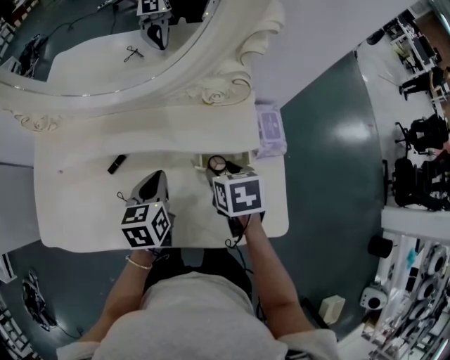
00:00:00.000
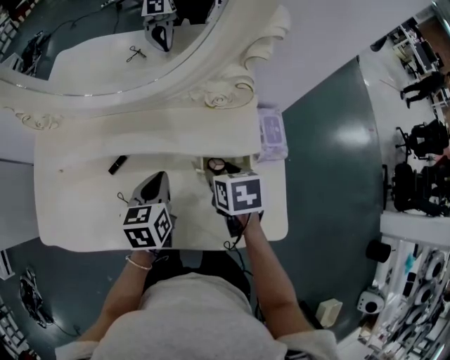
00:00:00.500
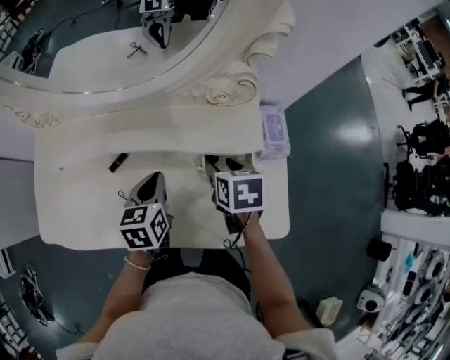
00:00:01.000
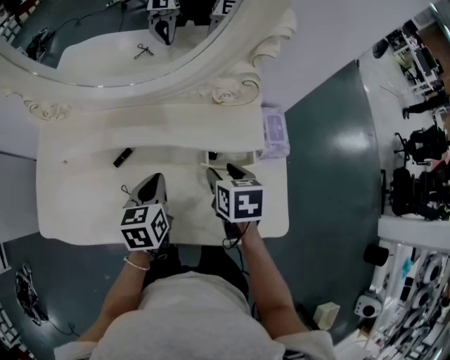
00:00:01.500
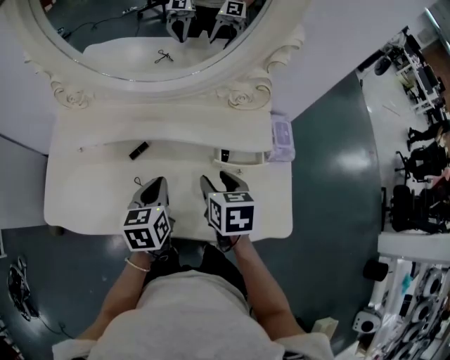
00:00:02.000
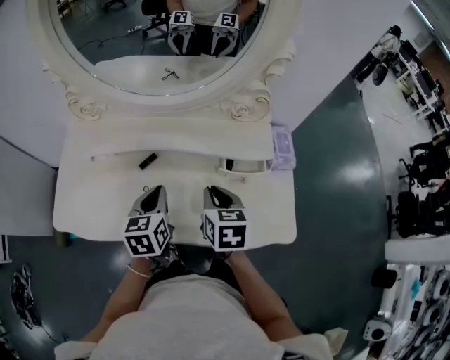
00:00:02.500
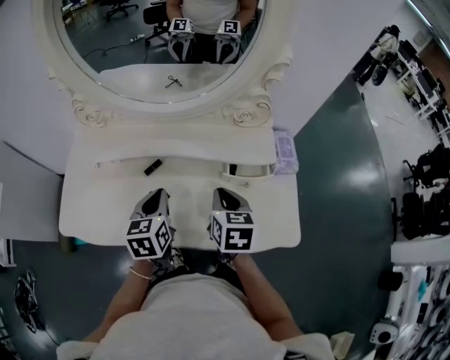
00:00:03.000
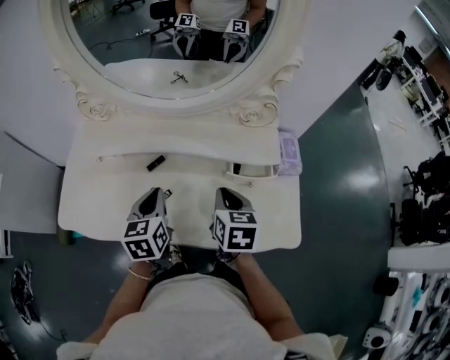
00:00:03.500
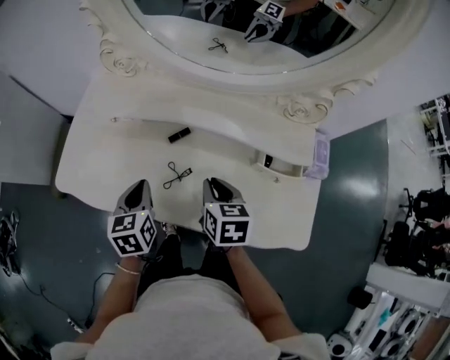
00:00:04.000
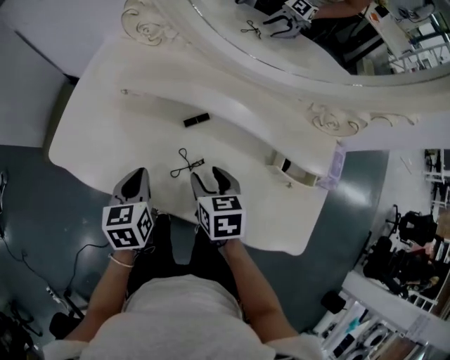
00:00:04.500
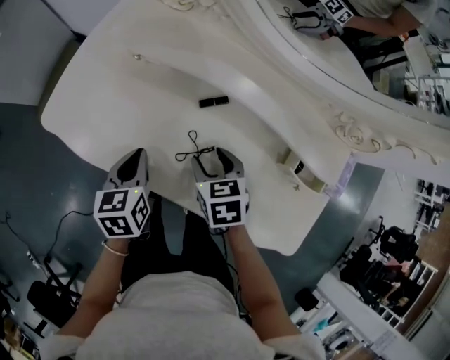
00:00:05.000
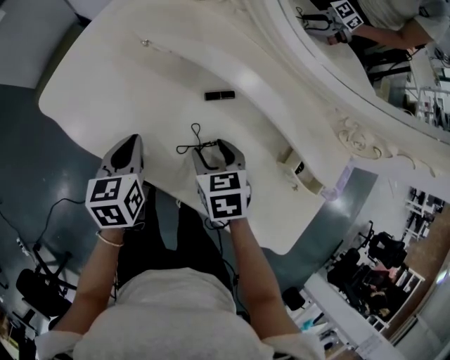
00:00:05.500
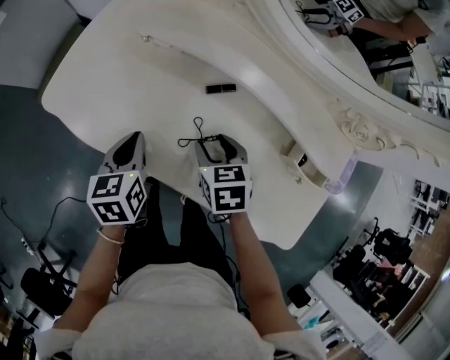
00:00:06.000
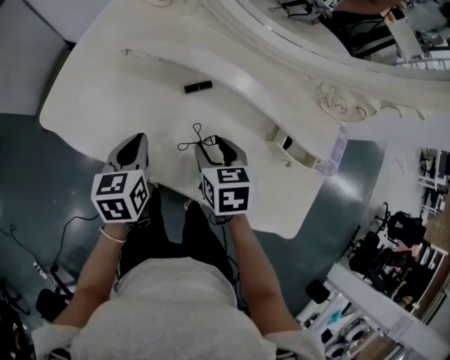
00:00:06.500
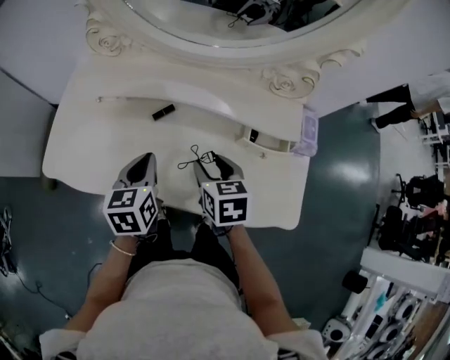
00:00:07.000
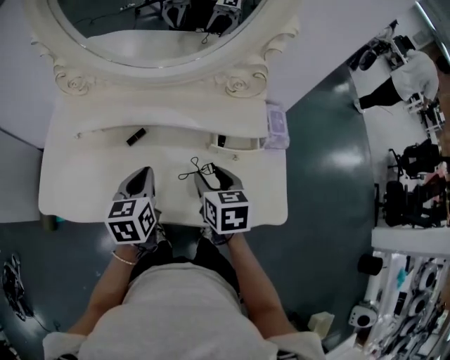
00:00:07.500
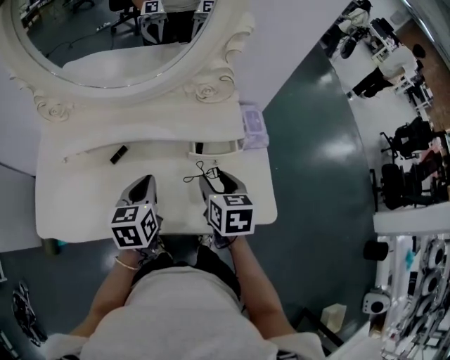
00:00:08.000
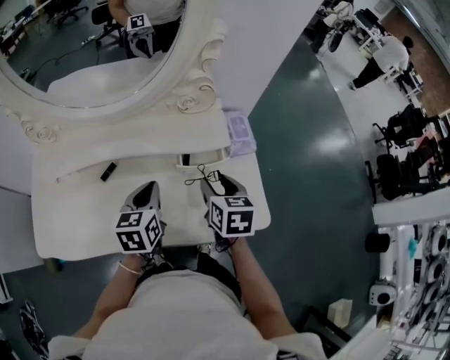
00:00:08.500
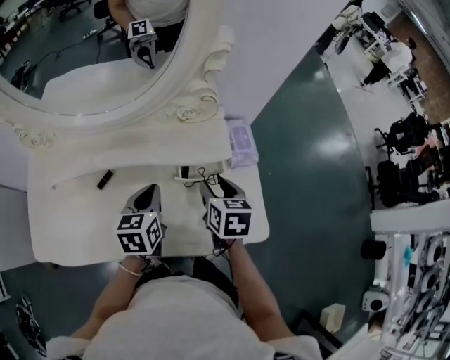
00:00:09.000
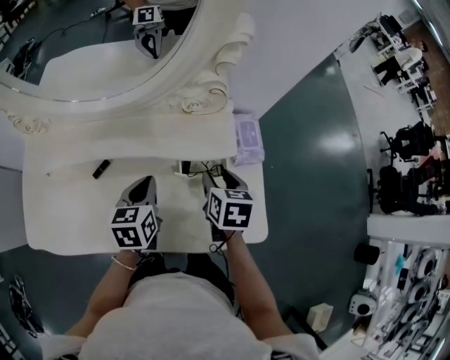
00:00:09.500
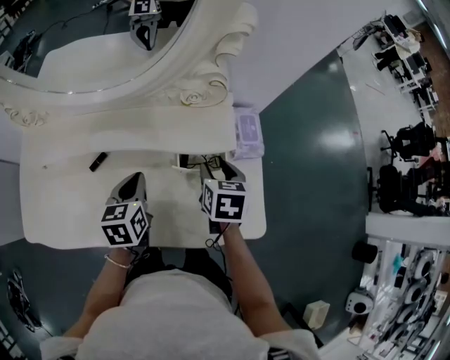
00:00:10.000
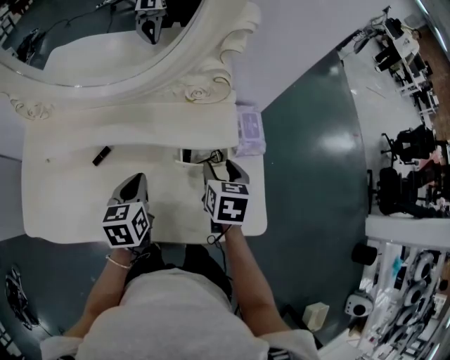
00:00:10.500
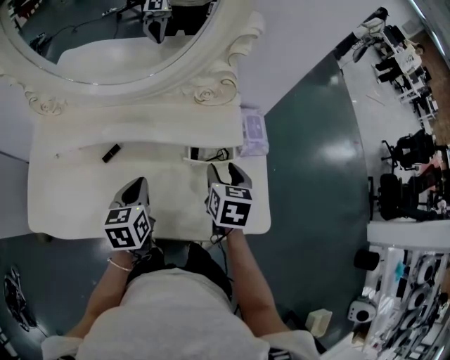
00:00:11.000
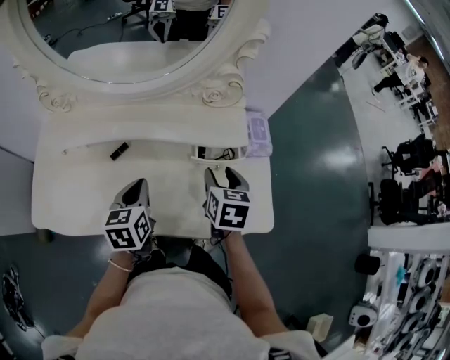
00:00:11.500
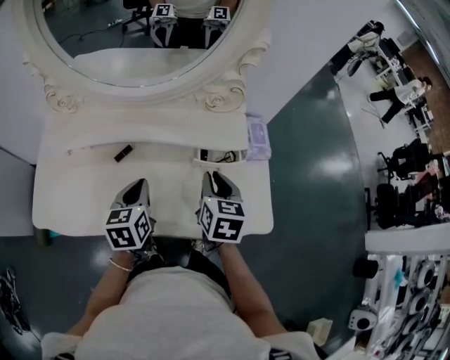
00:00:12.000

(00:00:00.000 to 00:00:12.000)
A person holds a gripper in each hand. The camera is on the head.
00:00:00.000 - 00:00:02.000: The left gripper heads to the left and backward, covering approximately 10 cm. The right gripper goes approximately 10 cm to the left.
00:00:02.000 - 00:00:04.000: The two grippers go roughly 15 cm to the left. The right gripper closes up.
00:00:04.000 - 00:00:06.000: The left gripper moves to the left and downward, approximately 10 cm, while the right gripper is displaced downward and to the left by roughly 10 cm, changes its angle by roughly 30 degrees, and opens up.
00:00:06.000 - 00:00:08.000: The left gripper ends up approximately 25 cm from where it was, and swivels approximately 40 degrees, while the right gripper changes place by about 30 cm, and swivels about 50 degrees.
00:00:08.000 - 00:00:10.000: The right gripper is displaced forward and to the right by approximately 10 cm. Meanwhile the left gripper moves forward, about 5 cm.
00:00:10.000 - 00:00:12.000: The left gripper shifts roughly 10 cm backward and to the left. The right gripper travels backward, to the left and upward by roughly 10 cm, and closes up.

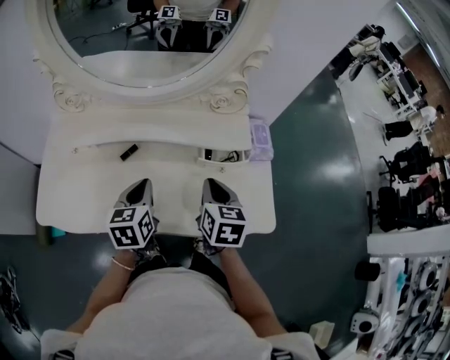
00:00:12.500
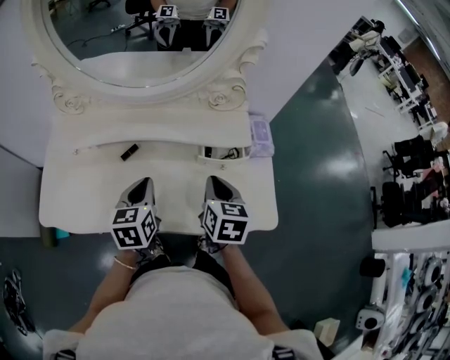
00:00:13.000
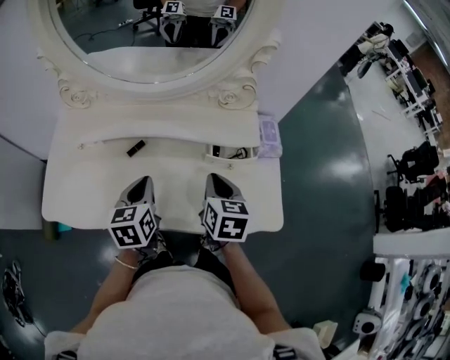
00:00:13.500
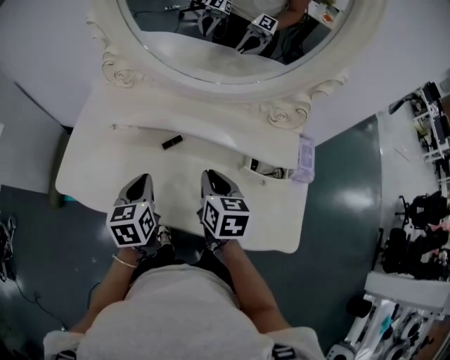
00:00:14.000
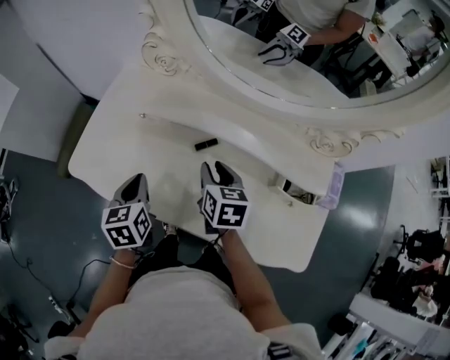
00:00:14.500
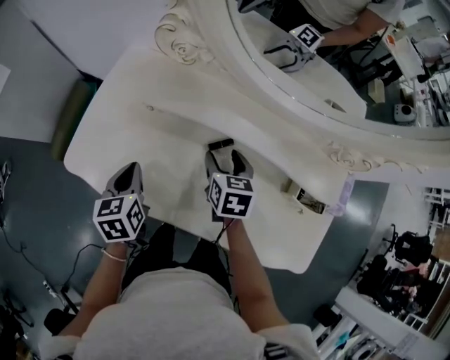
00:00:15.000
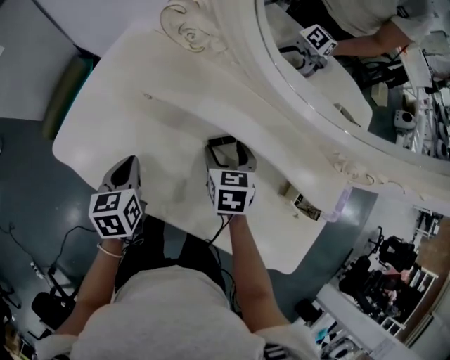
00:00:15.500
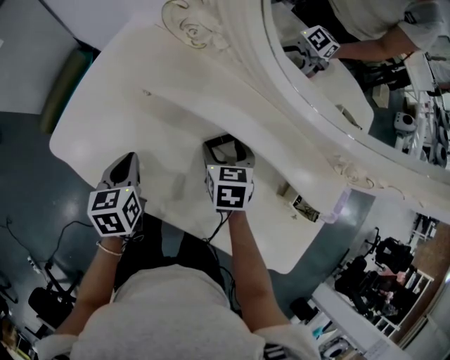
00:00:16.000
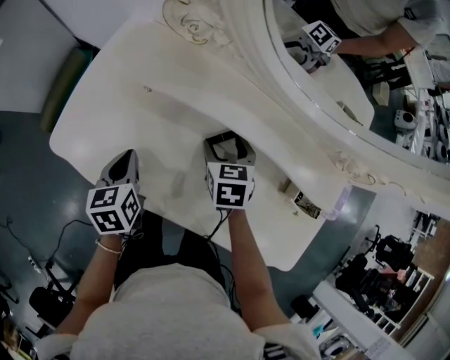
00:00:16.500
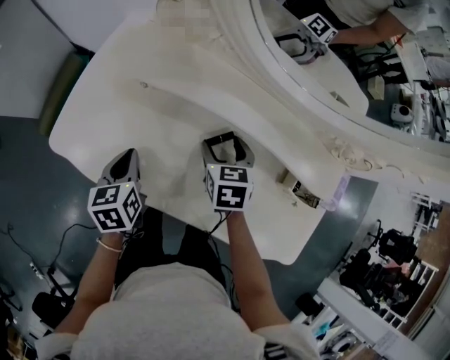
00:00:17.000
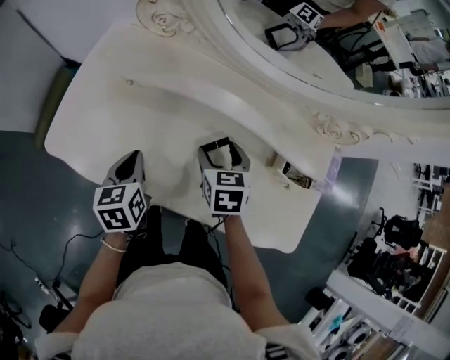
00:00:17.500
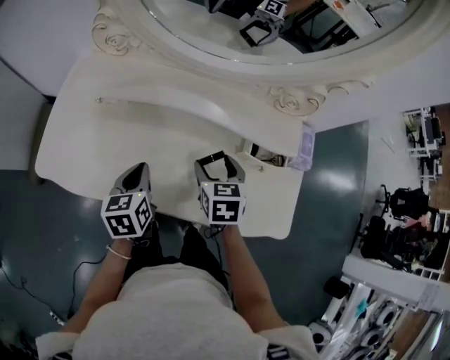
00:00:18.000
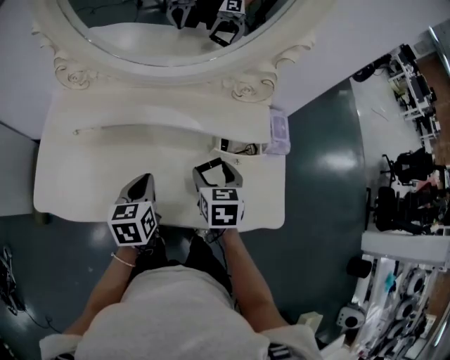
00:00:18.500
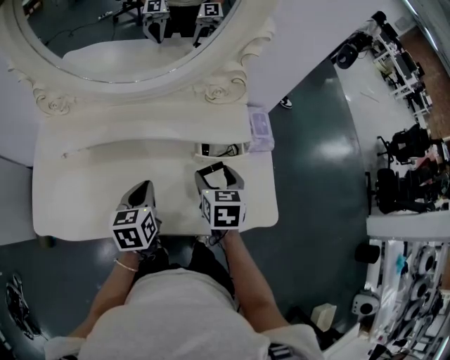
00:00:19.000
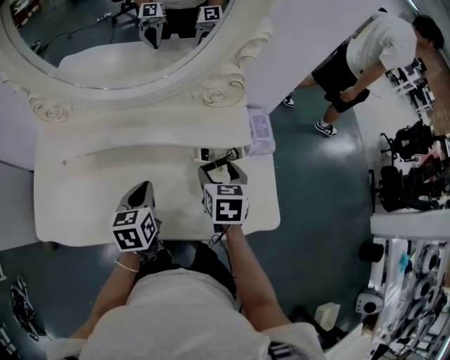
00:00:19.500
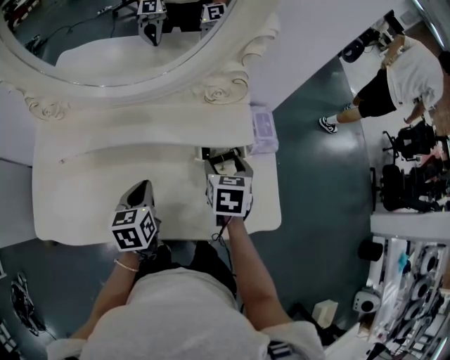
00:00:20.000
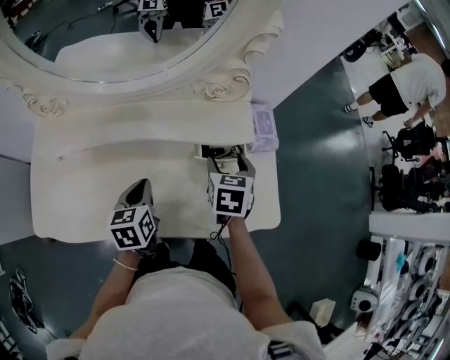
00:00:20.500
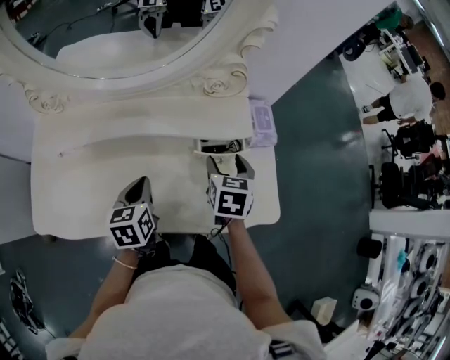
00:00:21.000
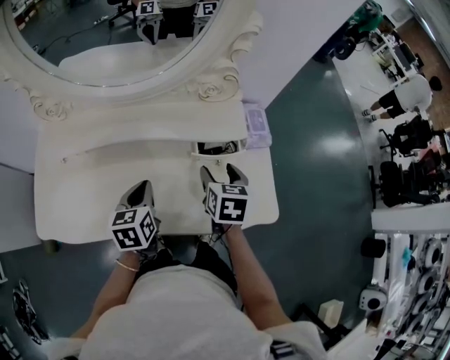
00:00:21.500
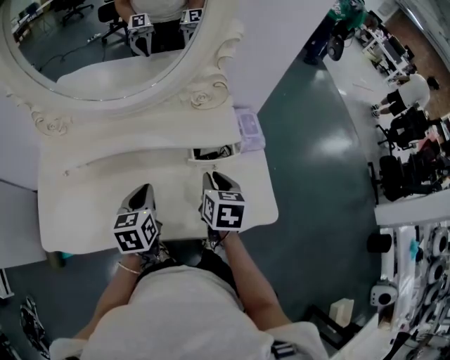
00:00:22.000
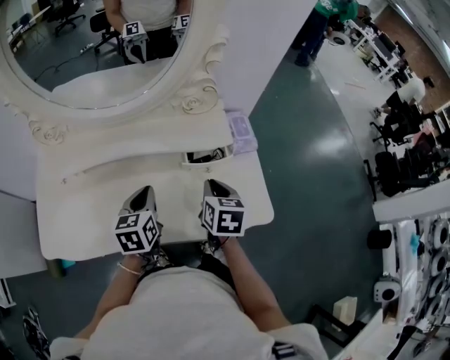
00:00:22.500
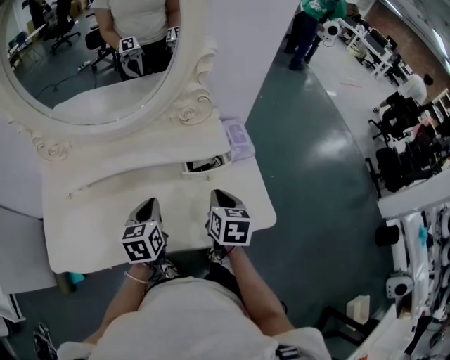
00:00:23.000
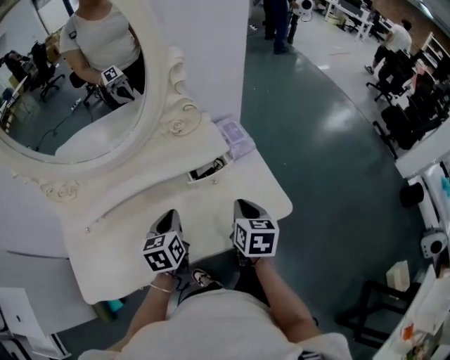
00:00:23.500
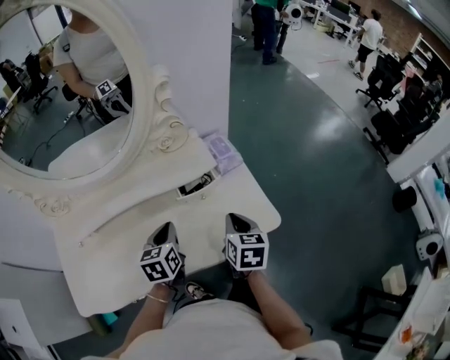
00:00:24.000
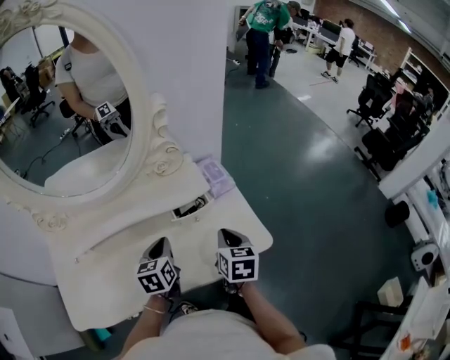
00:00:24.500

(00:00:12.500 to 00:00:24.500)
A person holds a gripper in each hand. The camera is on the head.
00:00:12.500 - 00:00:14.500: The right gripper changes place by some 25 cm, and changes its angle by roughly 30 degrees, while the left gripper changes place by about 25 cm, and swivels approximately 30 degrees.
00:00:14.500 - 00:00:16.500: The left gripper goes about 5 cm downward. The right gripper shifts approximately 10 cm downward and forward, turns by about 20 degrees, and opens up.
00:00:16.500 - 00:00:18.500: The left gripper heads to the right, covering approximately 25 cm, and turns by some 30 degrees; the right gripper travels to the right, backward and upward by approximately 25 cm, and changes its angle by about 30 degrees.
00:00:18.500 - 00:00:20.500: The left gripper changes place by roughly 5 cm; the right gripper heads to the right and forward, covering roughly 10 cm.
00:00:20.500 - 00:00:22.500: The left gripper moves about 5 cm, while the right gripper goes approximately 10 cm backward, and closes.
00:00:22.500 - 00:00:24.500: The two grippers go about 5 cm to the right.

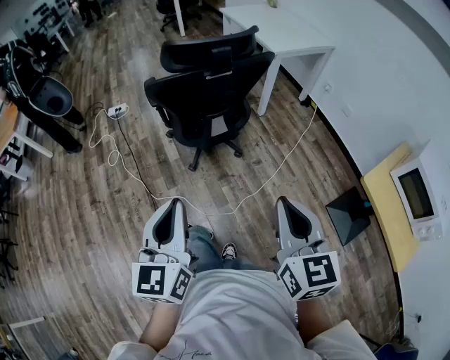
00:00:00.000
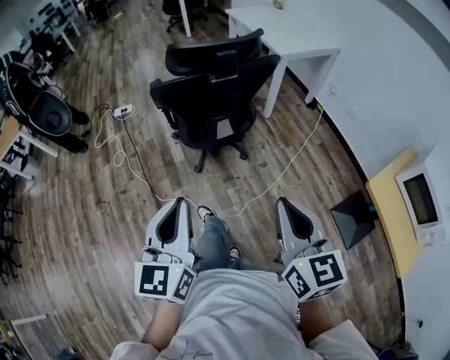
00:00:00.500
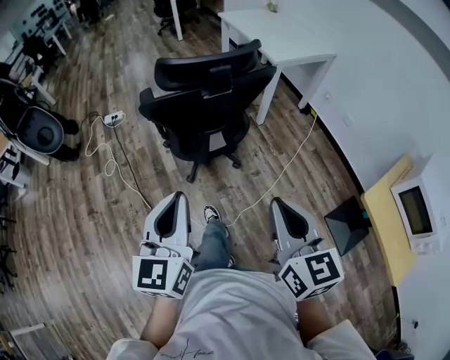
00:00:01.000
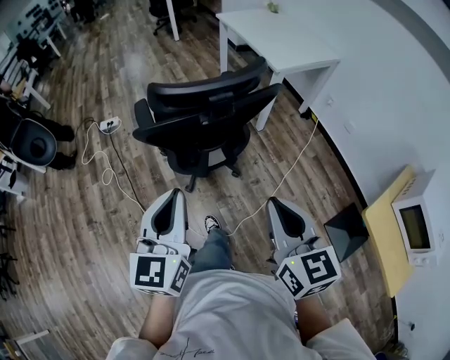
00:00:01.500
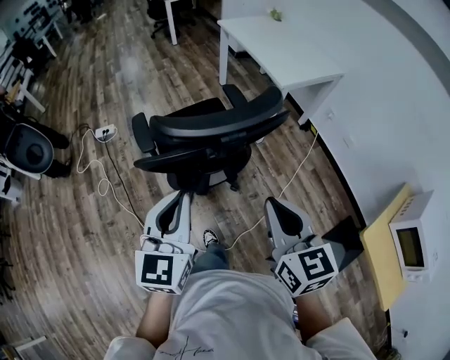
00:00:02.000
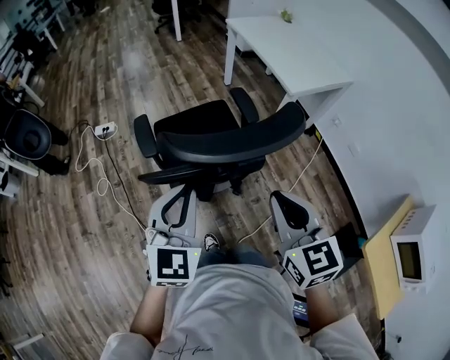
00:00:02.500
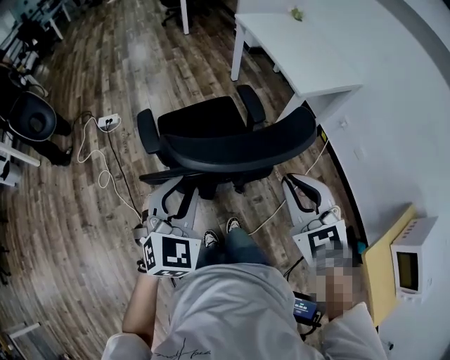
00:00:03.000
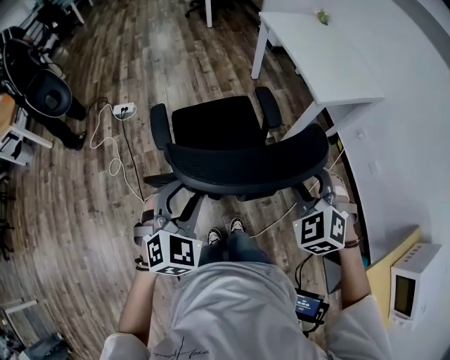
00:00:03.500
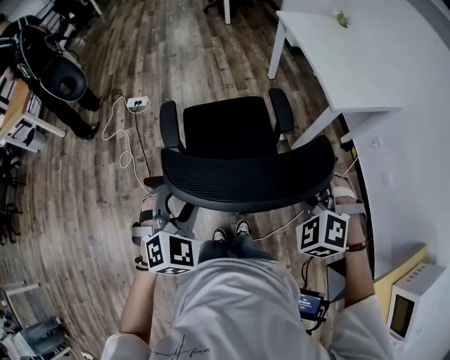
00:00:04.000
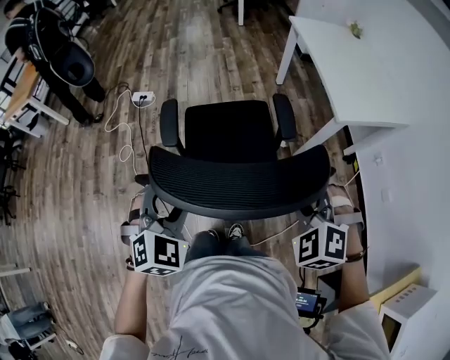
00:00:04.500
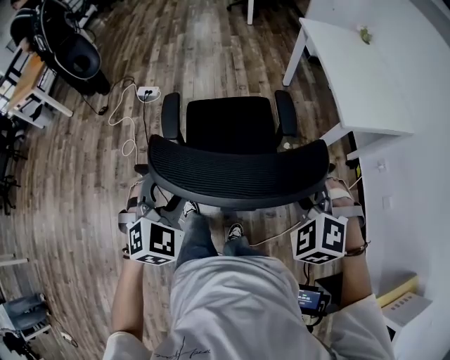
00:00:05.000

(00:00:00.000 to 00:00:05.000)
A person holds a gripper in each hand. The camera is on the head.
00:00:00.000 - 00:00:02.500: The grippers both shift forward by roughly 40 cm. The left gripper rotates roughly 30 degrees.
00:00:02.500 - 00:00:05.000: The left gripper shifts some 15 cm forward and downward, changes its angle by some 30 degrees, and opens up; the right gripper shifts roughly 20 cm forward and downward, twists some 60 degrees counterclockwise, seen from behind, and opens.
